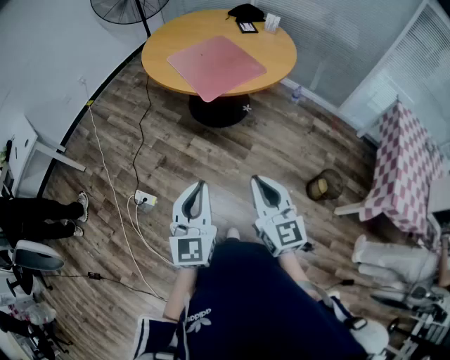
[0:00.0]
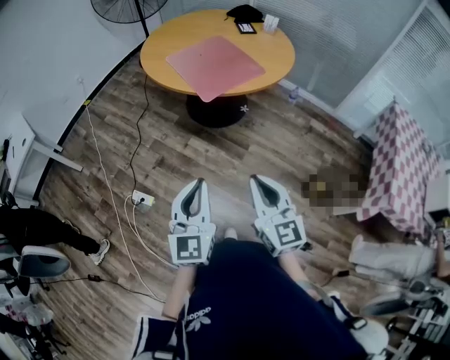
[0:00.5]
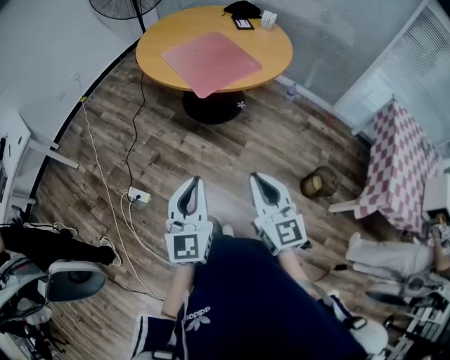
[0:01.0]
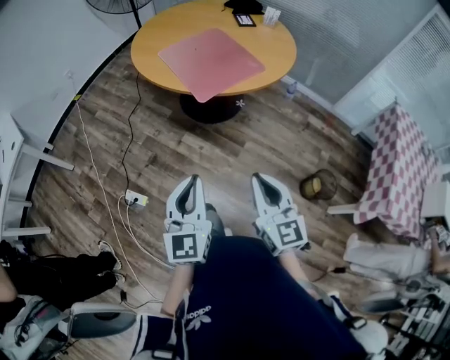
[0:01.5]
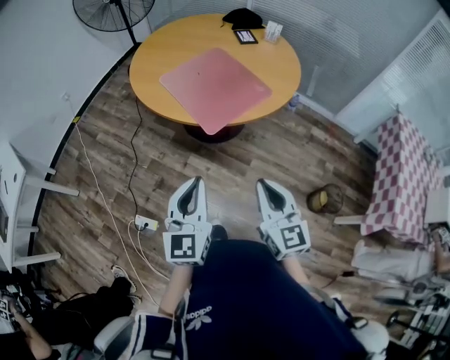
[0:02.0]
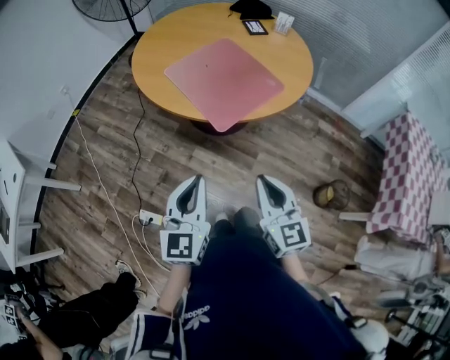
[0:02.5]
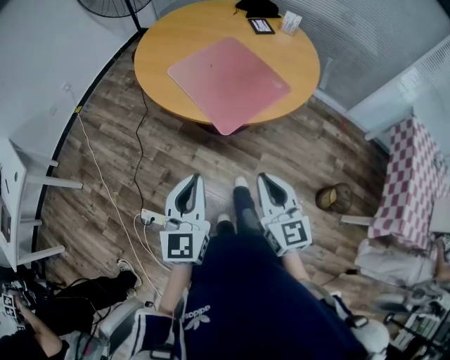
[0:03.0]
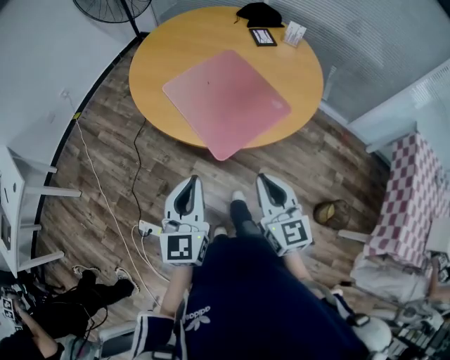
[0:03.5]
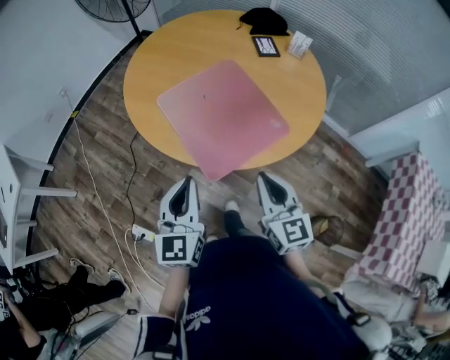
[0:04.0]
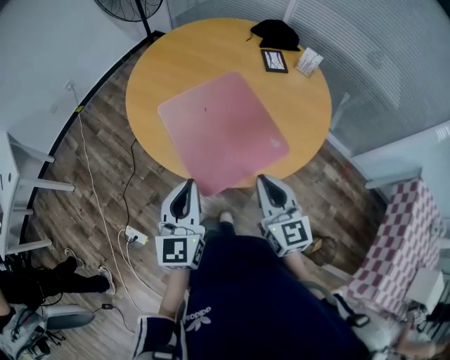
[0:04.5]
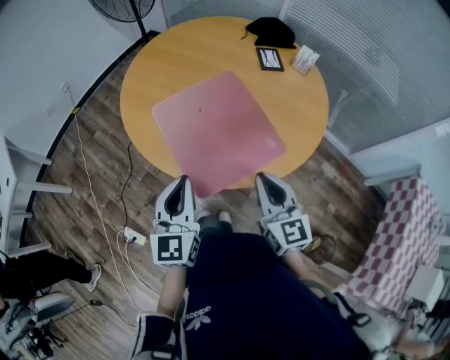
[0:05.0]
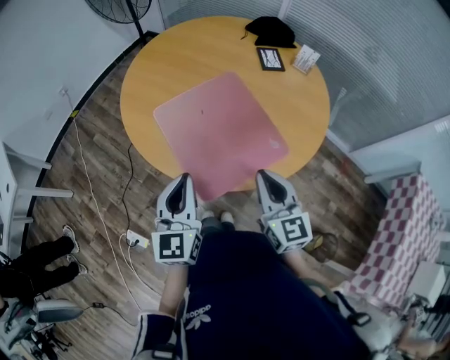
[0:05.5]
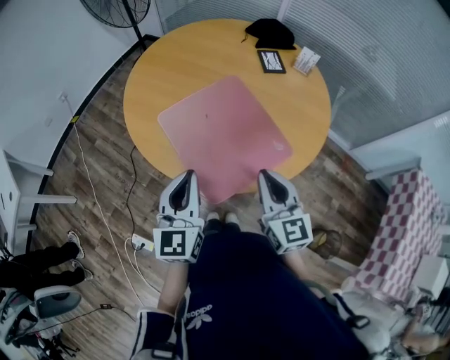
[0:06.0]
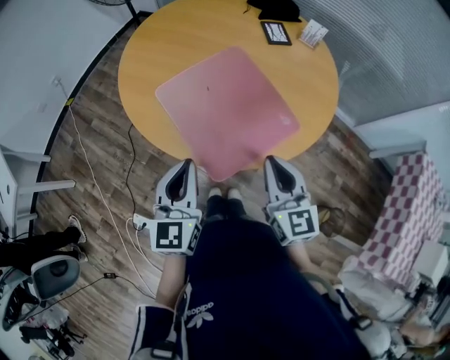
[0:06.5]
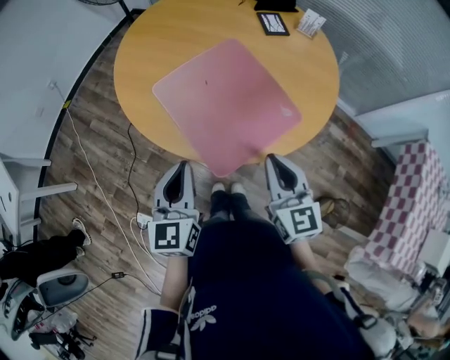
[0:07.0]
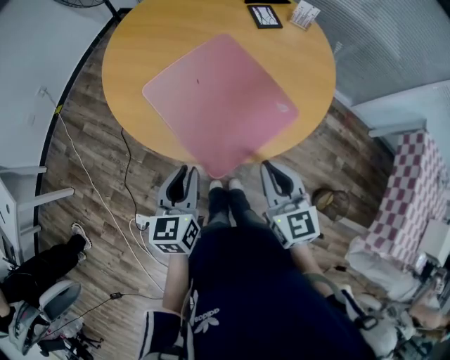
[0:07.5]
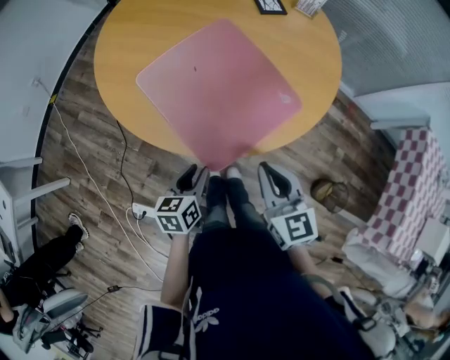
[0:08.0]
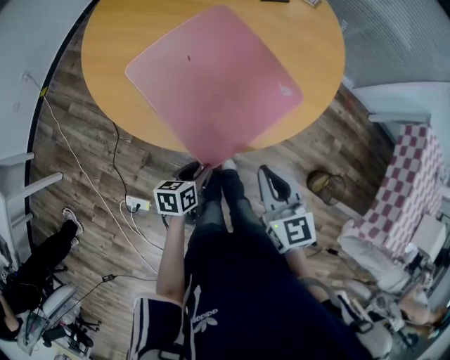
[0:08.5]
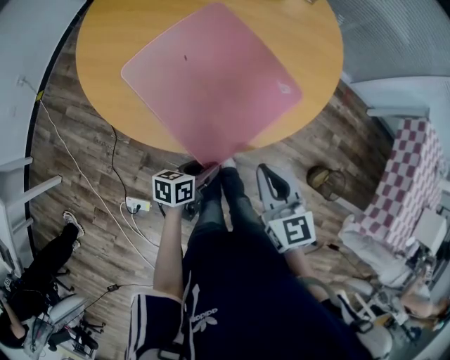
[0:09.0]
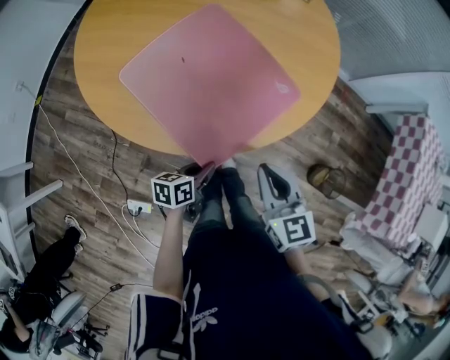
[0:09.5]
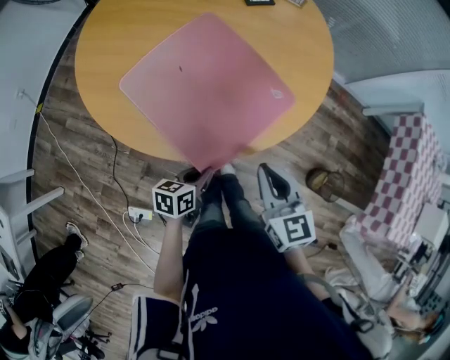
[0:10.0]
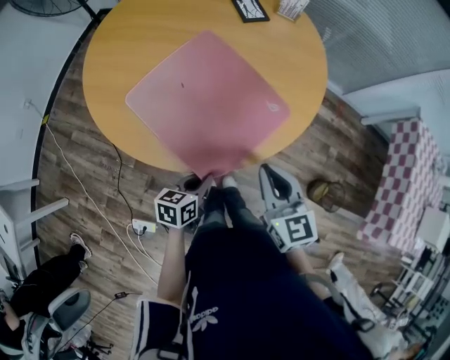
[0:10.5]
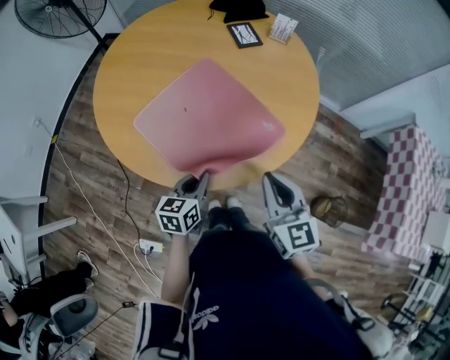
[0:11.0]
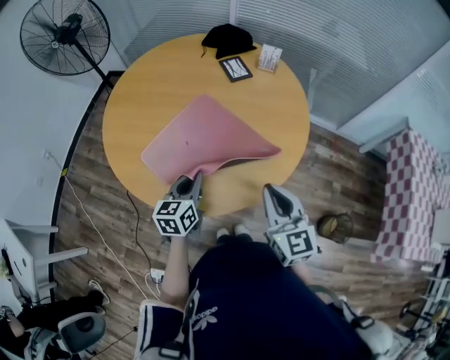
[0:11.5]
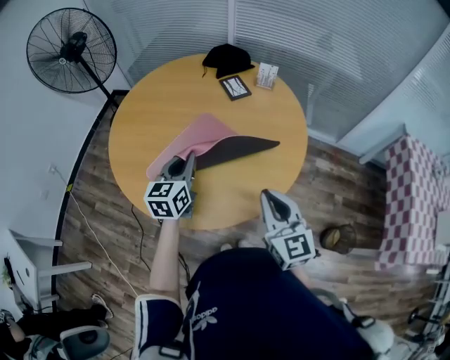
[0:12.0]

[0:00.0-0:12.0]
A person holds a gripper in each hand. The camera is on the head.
0:00.0 to 0:02.0: Both grippers move forward, some 15 cm.
0:02.0 to 0:04.0: Both grippers travel together forward, approximately 25 cm.
0:04.0 to 0:06.0: Both grippers travel together forward, roughly 10 cm.
0:06.0 to 0:08.0: The right gripper goes roughly 10 cm downward and backward. The left gripper is displaced downward by approximately 25 cm, swivels approximately 40 degrees, and opens its fingers.
0:08.0 to 0:10.0: The left gripper changes place by approximately 5 cm, turns by roughly 20 degrees, and closes its fingers.
0:10.0 to 0:12.0: The right gripper travels upward and forward by approximately 10 cm; the left gripper shifts roughly 35 cm upward, forward and to the left, and changes its angle by roughly 50 degrees.

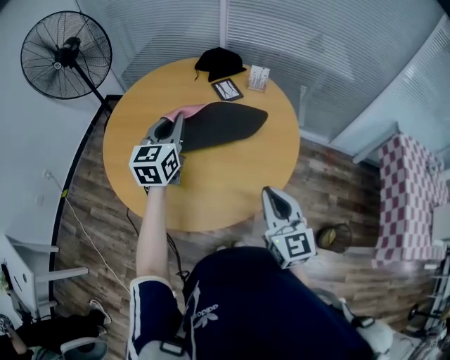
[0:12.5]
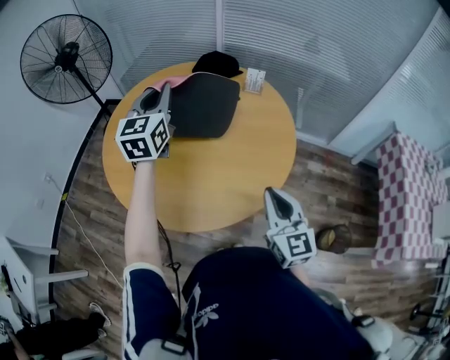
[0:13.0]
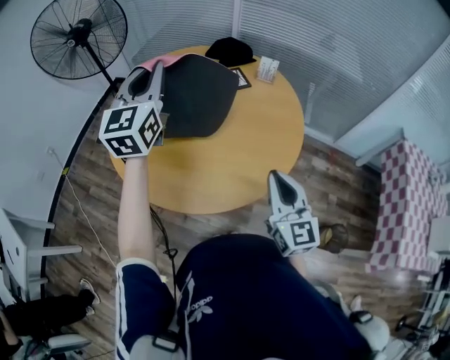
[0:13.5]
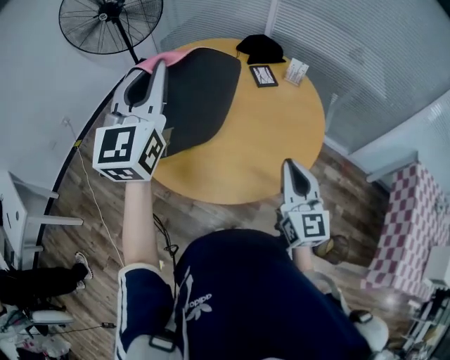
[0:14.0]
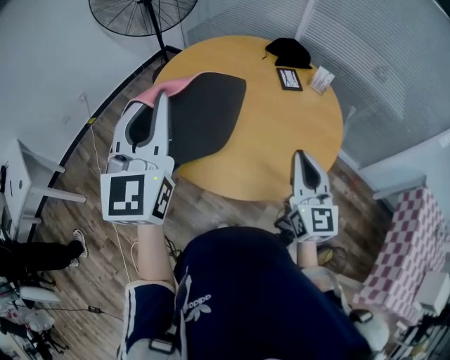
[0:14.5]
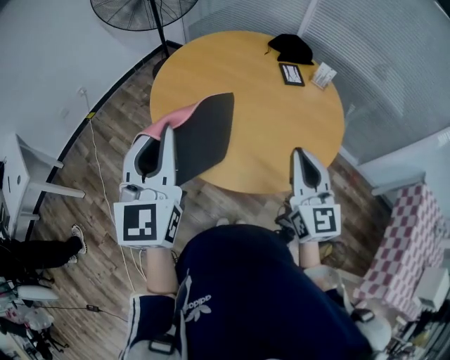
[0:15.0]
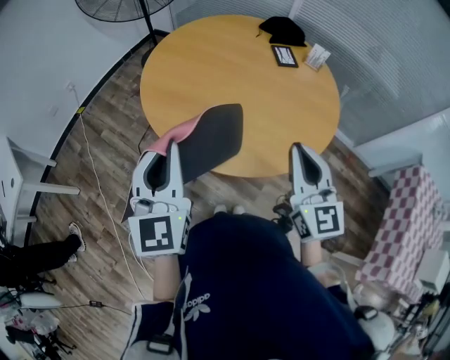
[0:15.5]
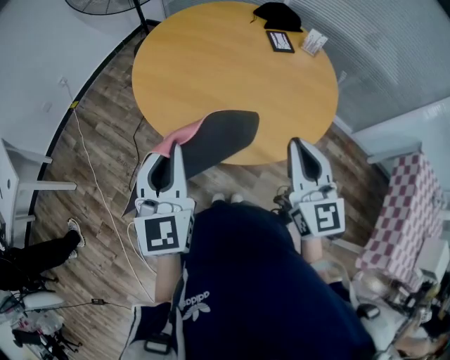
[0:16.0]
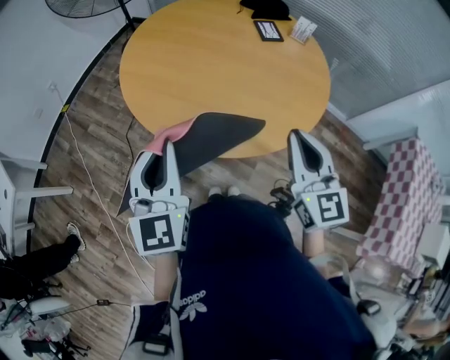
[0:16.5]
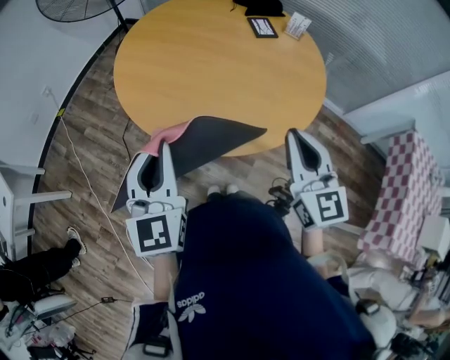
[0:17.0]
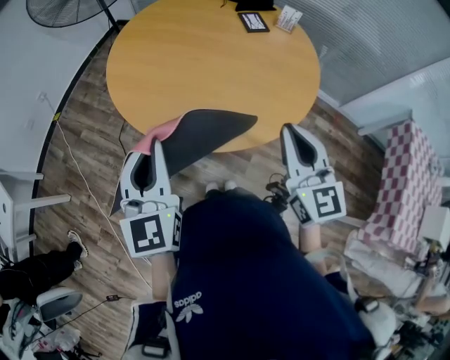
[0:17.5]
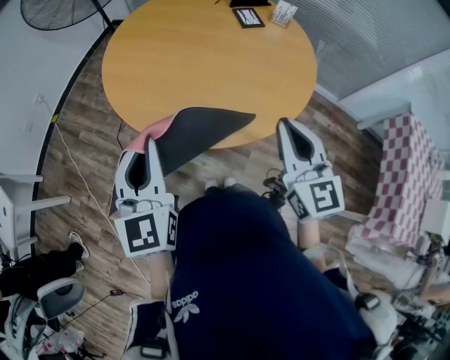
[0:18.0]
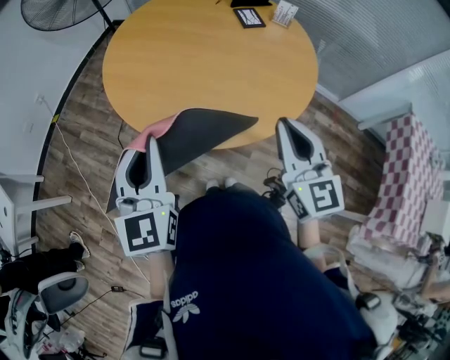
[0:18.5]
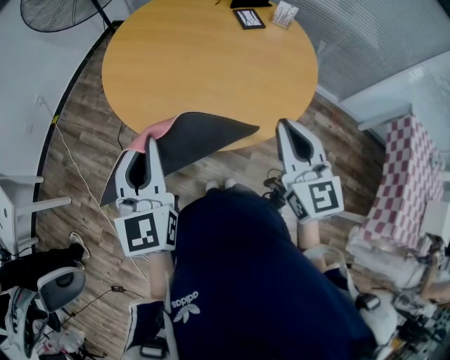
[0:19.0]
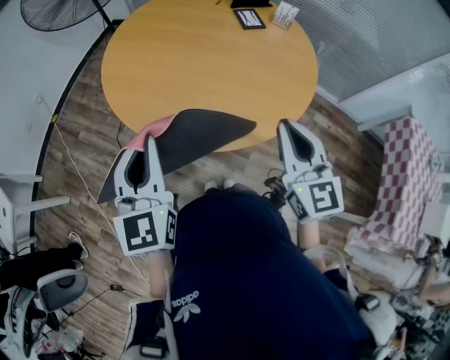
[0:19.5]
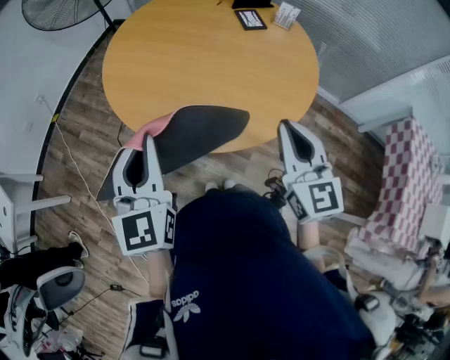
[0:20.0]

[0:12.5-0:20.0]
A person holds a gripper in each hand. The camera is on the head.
0:12.5 to 0:14.5: The right gripper changes place by approximately 5 cm, while the left gripper goes about 30 cm backward, upward and to the left, and turns by some 30 degrees.
0:14.5 to 0:16.5: The left gripper goes approximately 20 cm downward and backward. Meanwhile the right gripper is displaced backward by about 5 cm.
0:16.5 to 0:18.0: Both grippers stay put.
0:18.0 to 0:20.0: The grippers stay close to where they were, moving slightly.

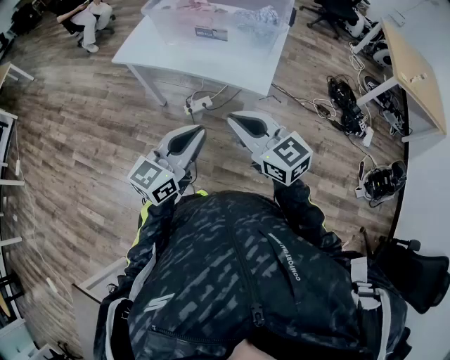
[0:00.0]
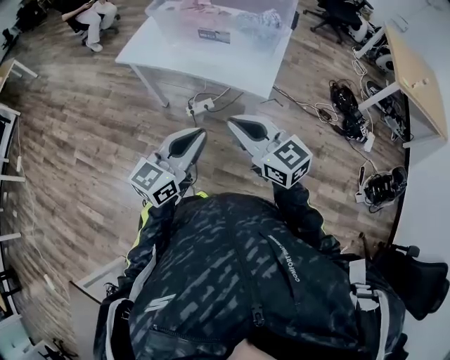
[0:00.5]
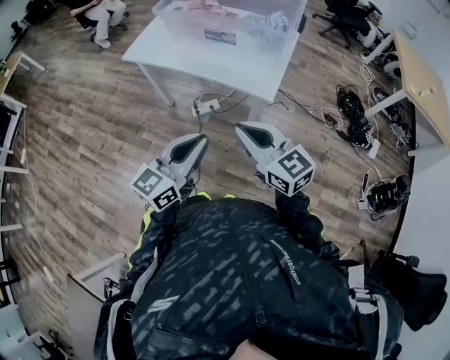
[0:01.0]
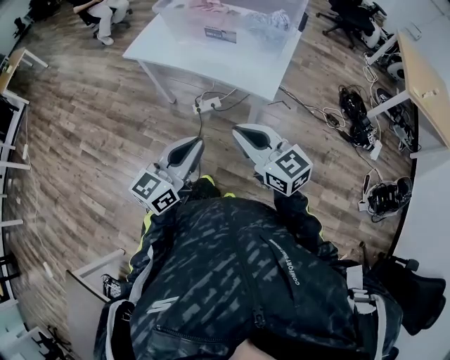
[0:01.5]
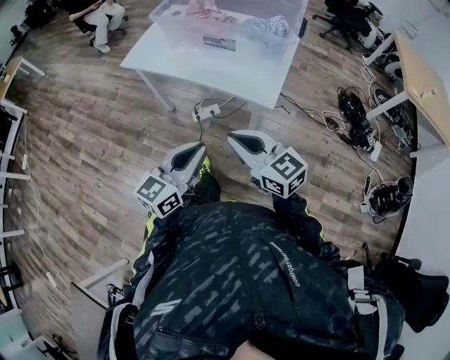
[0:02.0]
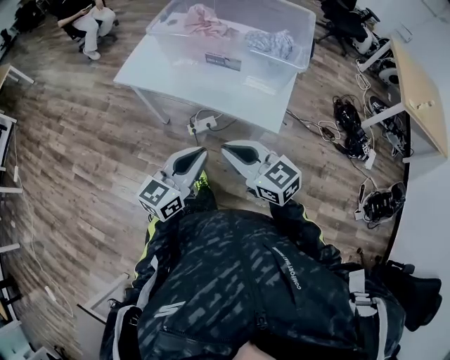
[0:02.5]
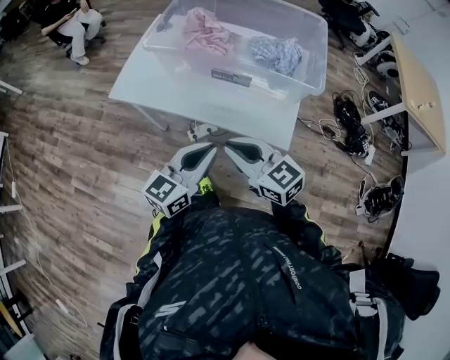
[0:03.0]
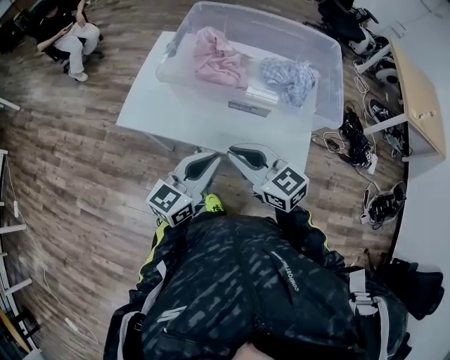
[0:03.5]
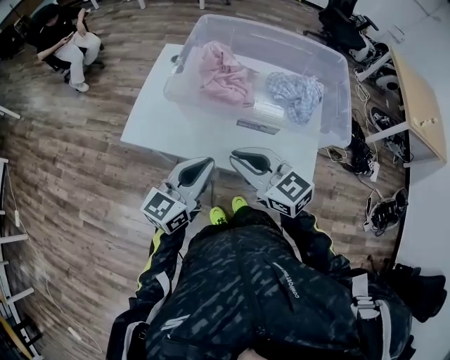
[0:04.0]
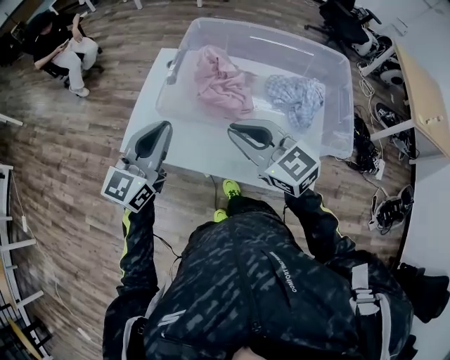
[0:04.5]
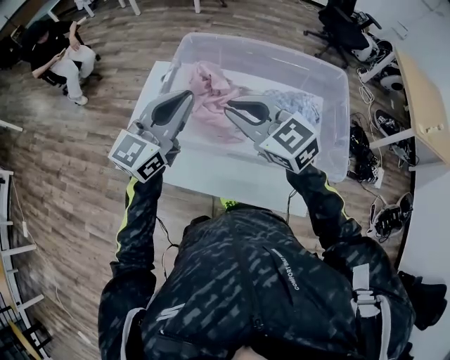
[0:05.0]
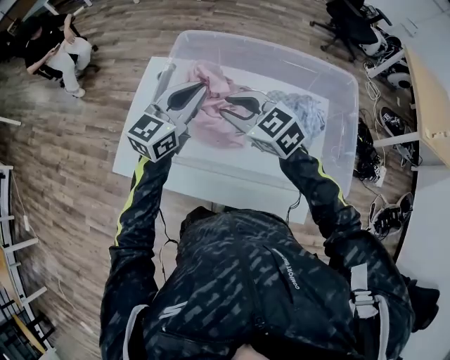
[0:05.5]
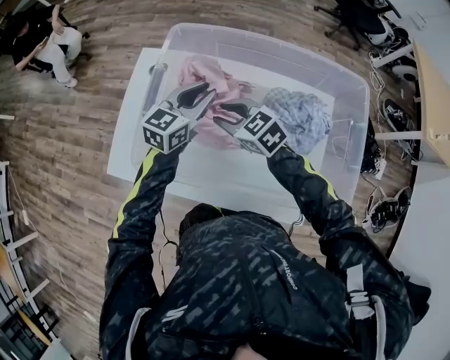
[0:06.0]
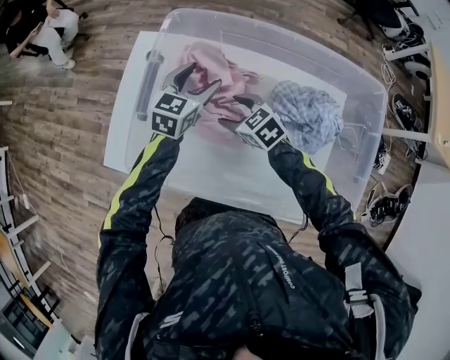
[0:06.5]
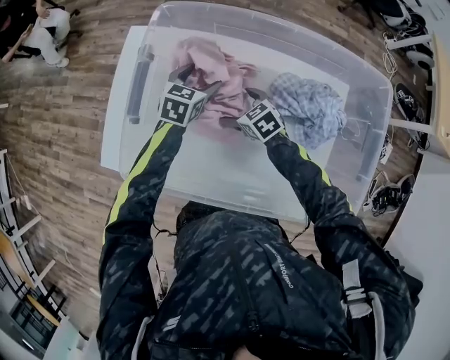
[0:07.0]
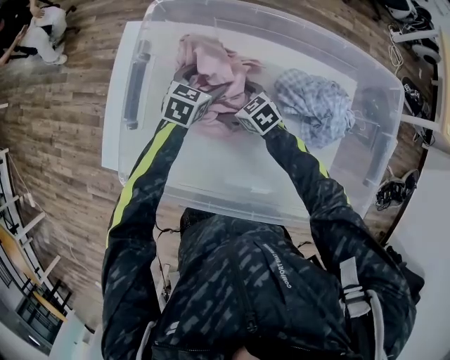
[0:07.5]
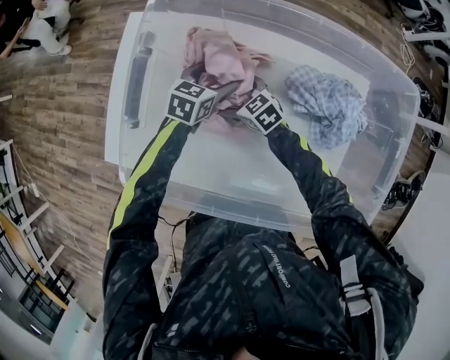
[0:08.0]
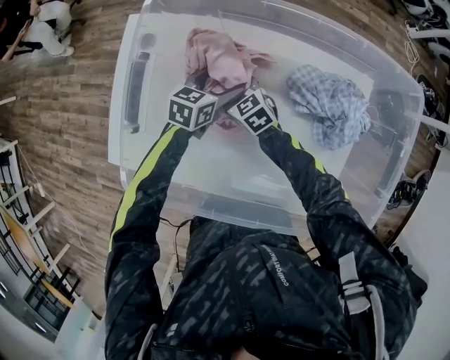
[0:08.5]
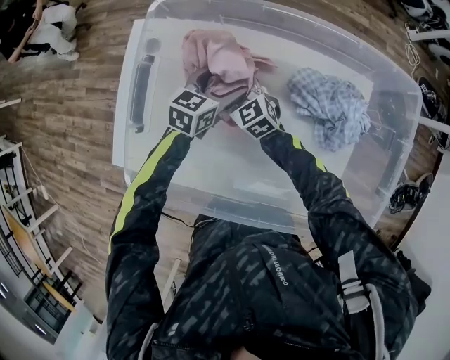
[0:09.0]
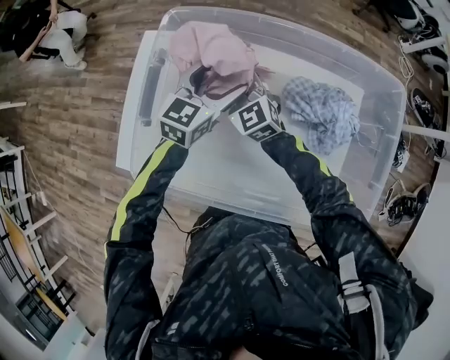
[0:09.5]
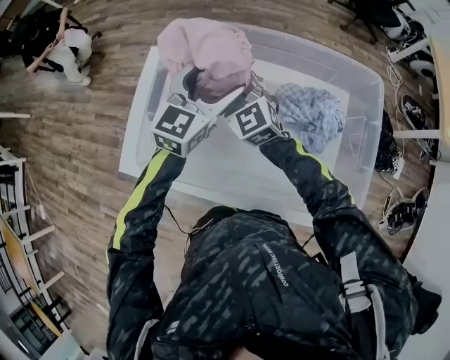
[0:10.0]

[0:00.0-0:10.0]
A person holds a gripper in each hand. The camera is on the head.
0:00.0 to 0:02.0: There are only small adjustments of the grippers.
0:02.0 to 0:04.0: The left gripper shifts about 35 cm forward. Meanwhile the right gripper heads forward and to the left, covering some 40 cm.
0:04.0 to 0:06.0: The grippers both shift forward by about 35 cm. The right gripper swivels some 20 degrees.
0:06.0 to 0:08.0: Both grippers travel together downward, some 20 cm. The left gripper rotates approximately 30 degrees, and opens up, while the right gripper opens.
0:08.0 to 0:10.0: The grippers both shift upward by some 30 cm. The right gripper tilts its fingers some 30 degrees upward, and closes up; the left gripper turns by about 40 degrees.
